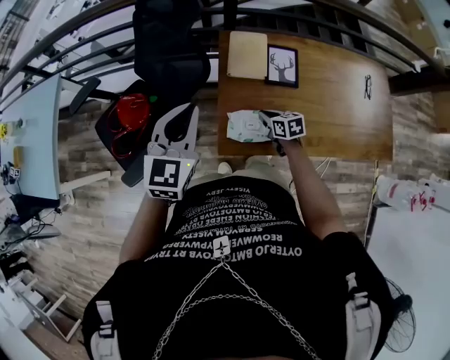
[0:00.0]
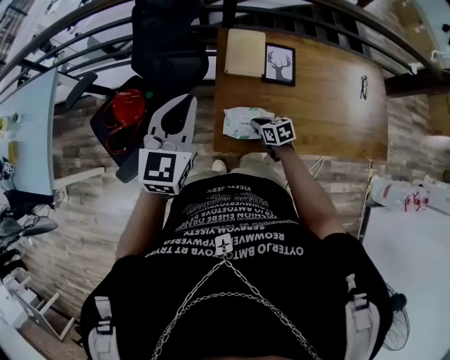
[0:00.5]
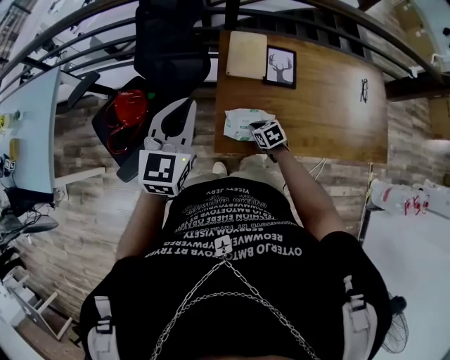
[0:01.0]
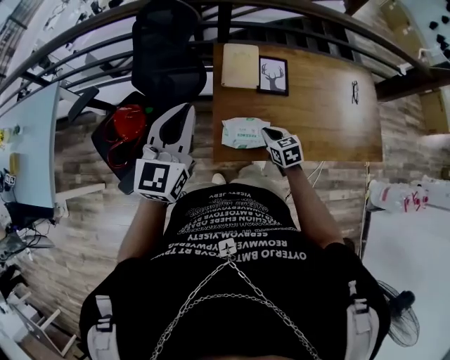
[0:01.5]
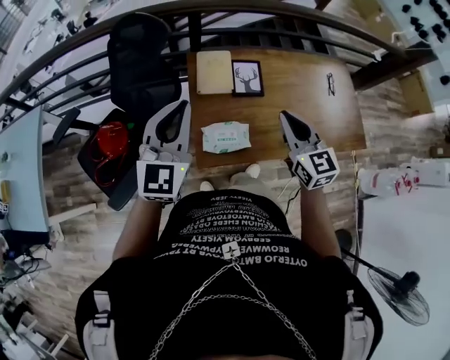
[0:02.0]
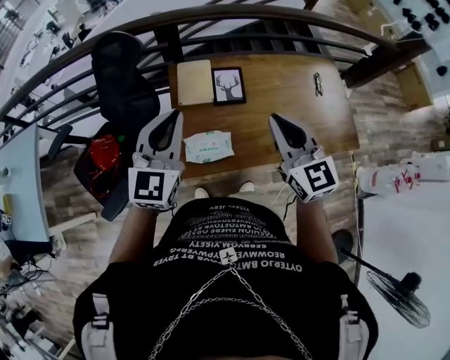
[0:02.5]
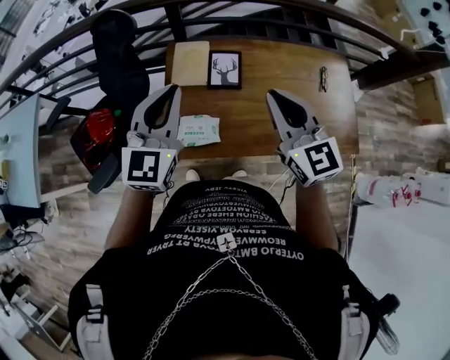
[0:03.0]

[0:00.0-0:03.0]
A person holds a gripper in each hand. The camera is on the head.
0:00.0 to 0:01.5: The left gripper moves upward, approximately 5 cm. Meanwhile the right gripper goes approximately 10 cm upward and backward.
0:01.5 to 0:03.0: The left gripper is displaced to the right by about 20 cm; the right gripper goes roughly 40 cm upward and to the right, and points its fingers some 40 degrees further upward.

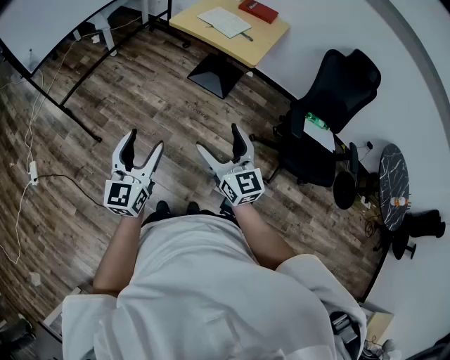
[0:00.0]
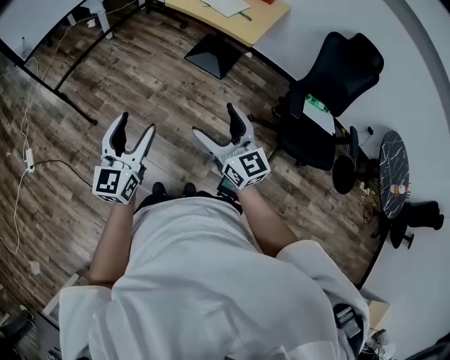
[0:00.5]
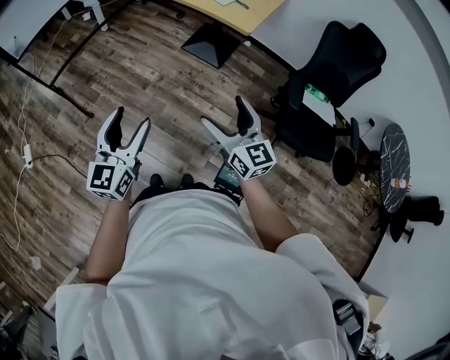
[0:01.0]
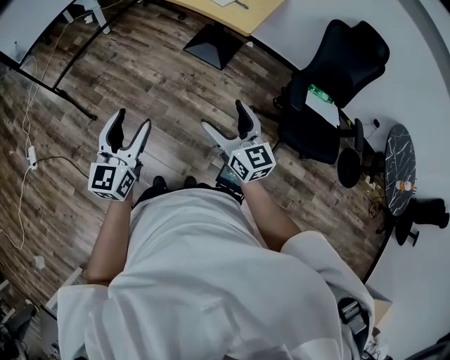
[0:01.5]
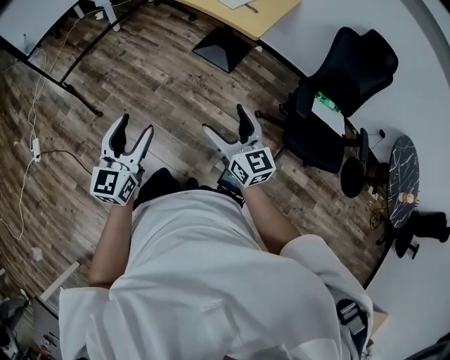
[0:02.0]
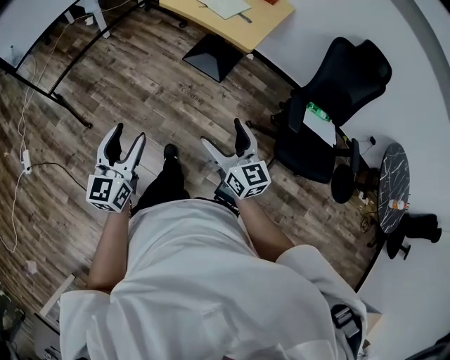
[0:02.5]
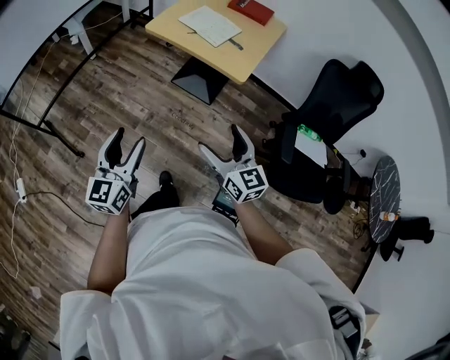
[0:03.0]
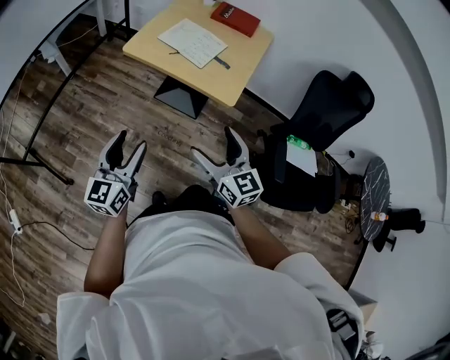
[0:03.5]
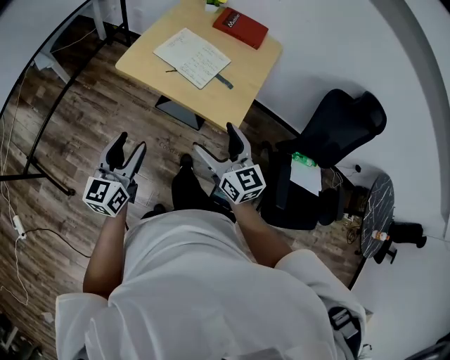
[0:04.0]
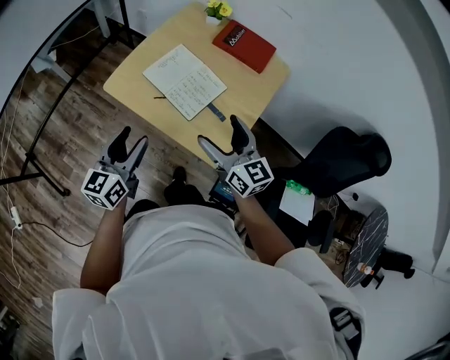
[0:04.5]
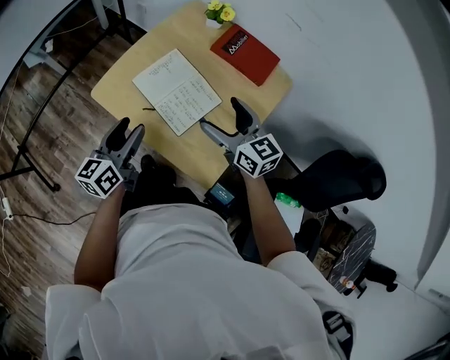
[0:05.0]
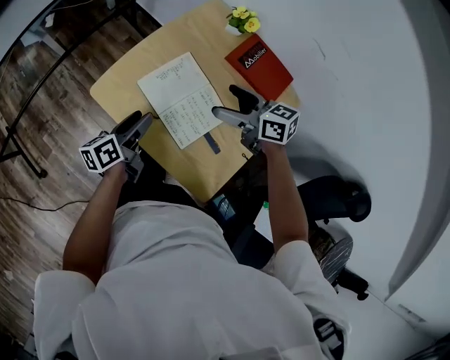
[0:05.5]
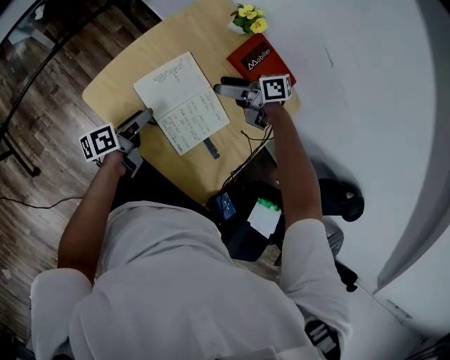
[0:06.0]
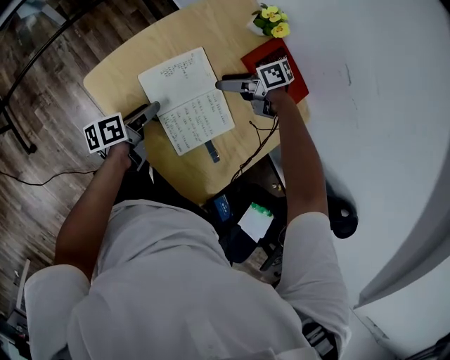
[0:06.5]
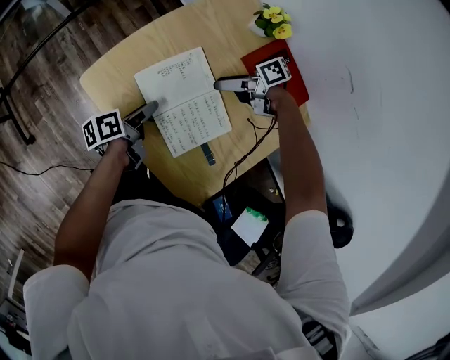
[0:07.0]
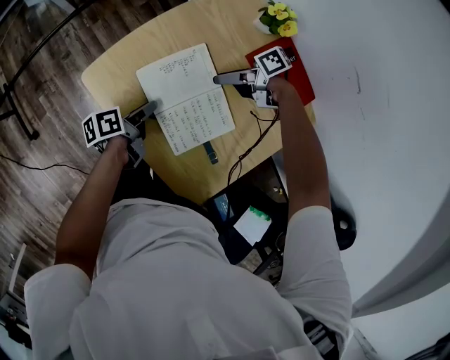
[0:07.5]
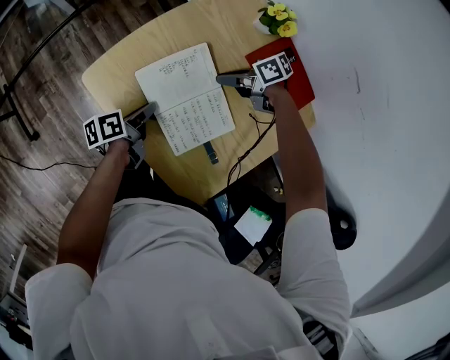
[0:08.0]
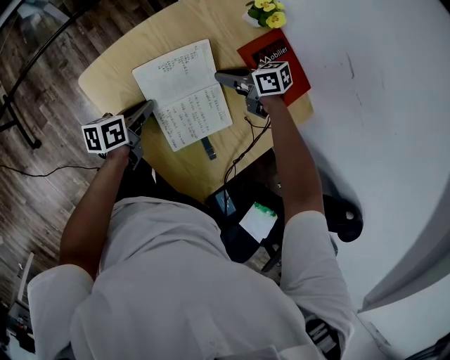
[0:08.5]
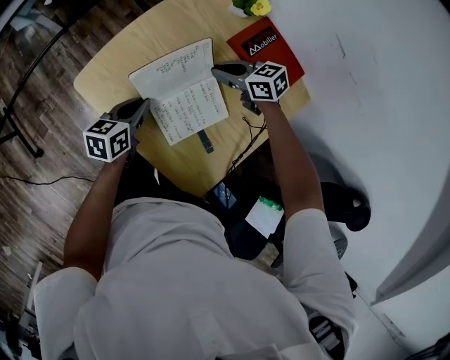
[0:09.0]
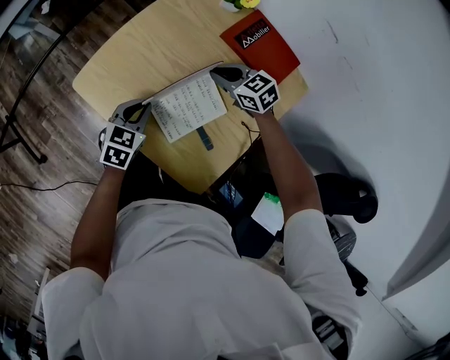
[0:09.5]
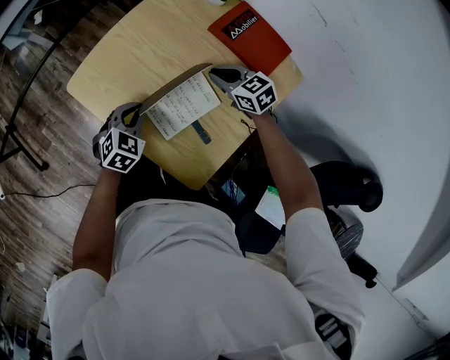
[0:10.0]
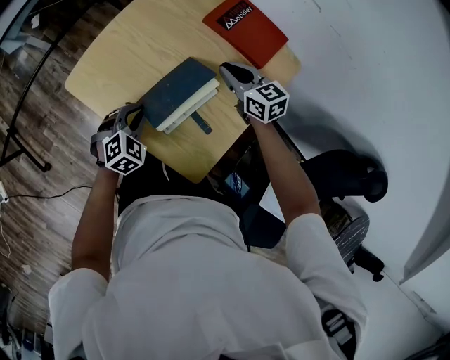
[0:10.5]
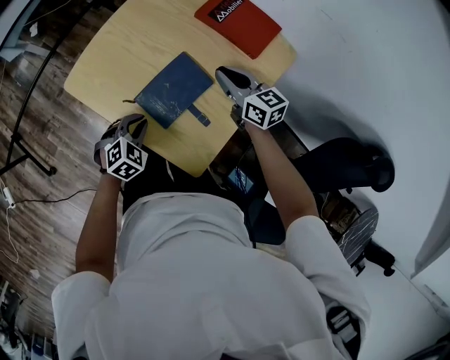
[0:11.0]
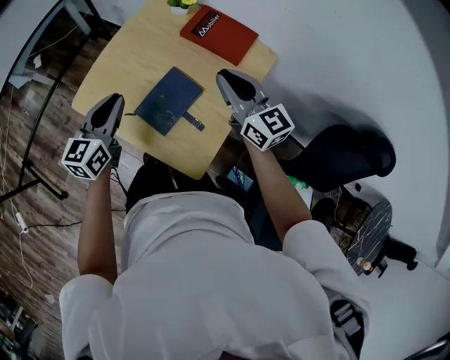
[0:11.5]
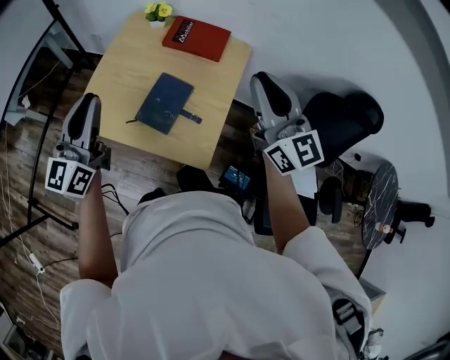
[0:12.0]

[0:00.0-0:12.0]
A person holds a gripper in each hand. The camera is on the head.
0:00.0 to 0:02.0: The right gripper goes roughly 5 cm to the right.
0:02.0 to 0:04.0: The two grippers travel together, forward, approximately 50 cm.
0:04.0 to 0:06.0: The right gripper moves roughly 50 cm, and rotates roughly 70 degrees. Meanwhile the left gripper ends up some 40 cm from where it was, and rolls counterclockwise, seen from behind, by about 60 degrees.
0:06.0 to 0:08.0: The left gripper shifts approximately 5 cm downward, and closes. The right gripper goes roughly 10 cm downward, rotates roughly 30 degrees, and closes.
0:08.0 to 0:10.0: The left gripper ends up approximately 5 cm from where it was, and twists about 90 degrees clockwise, seen from behind, while the right gripper ends up some 10 cm from where it was, and changes its angle by about 50 degrees.
0:10.0 to 0:12.0: The grippers both shift upward by roughly 35 cm. The right gripper points its fingers some 50 degrees further upward. The left gripper tilts its fingers some 60 degrees upward.

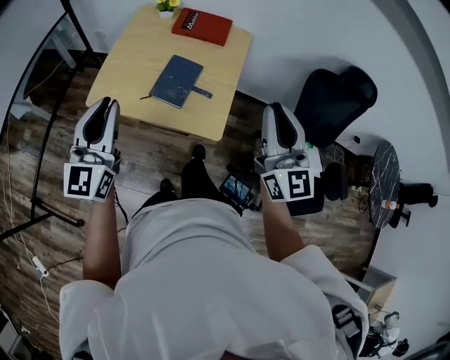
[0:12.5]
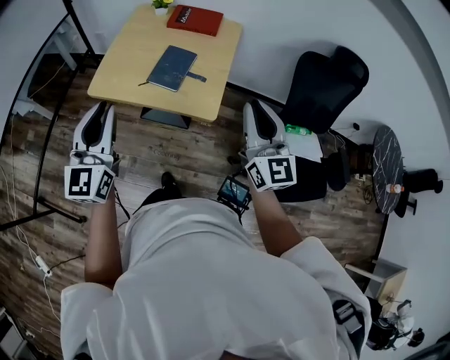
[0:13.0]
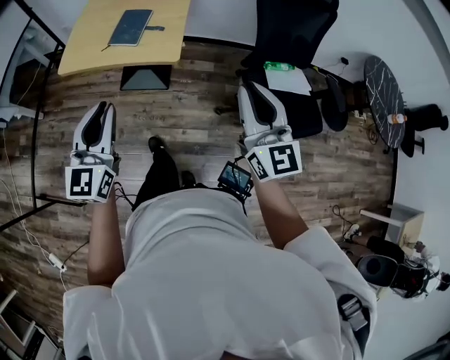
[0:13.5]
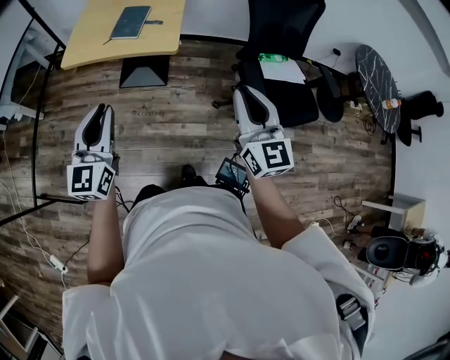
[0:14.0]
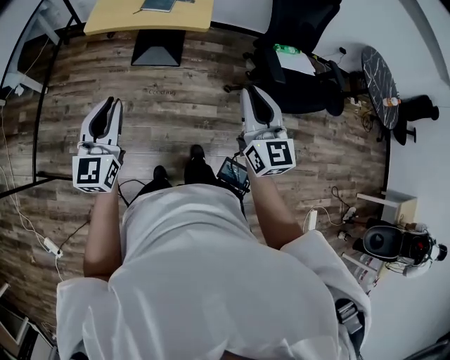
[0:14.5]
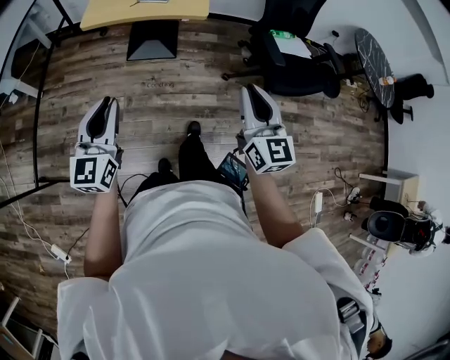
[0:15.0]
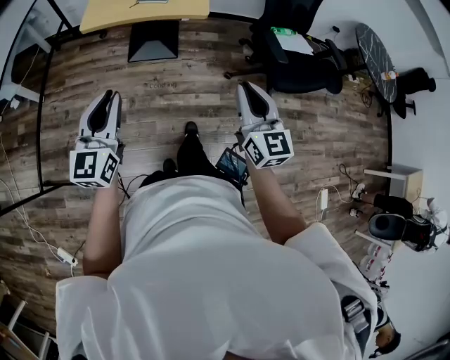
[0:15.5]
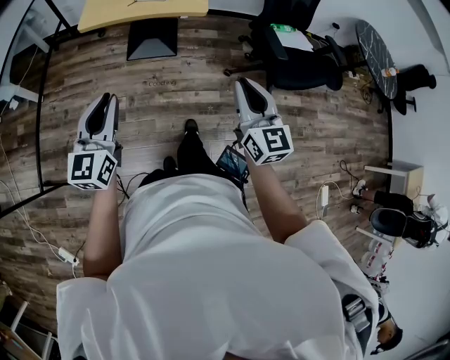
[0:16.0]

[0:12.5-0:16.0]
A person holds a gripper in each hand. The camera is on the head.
0:12.5 to 0:14.5: The two grippers go roughly 40 cm backward.
0:14.5 to 0:16.0: The two grippers go approximately 5 cm to the left.

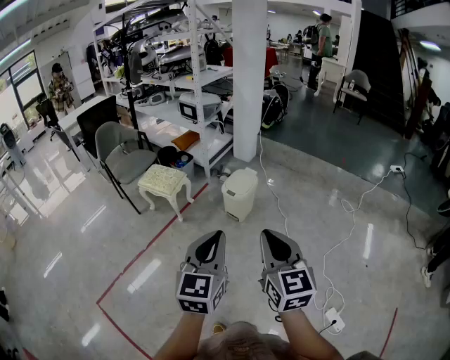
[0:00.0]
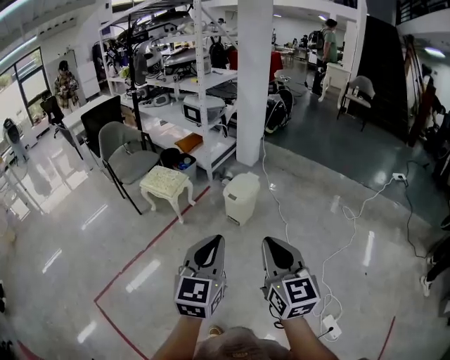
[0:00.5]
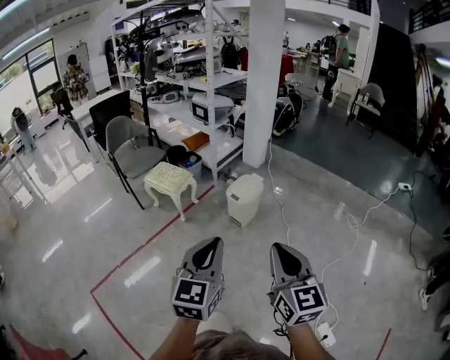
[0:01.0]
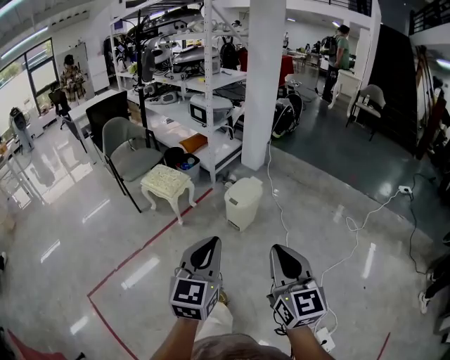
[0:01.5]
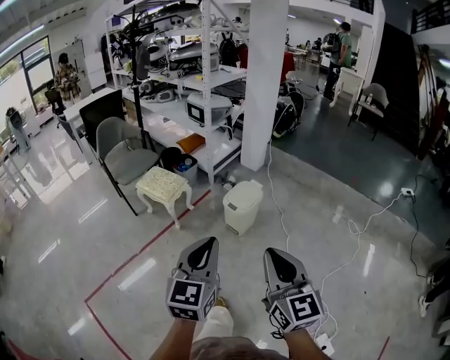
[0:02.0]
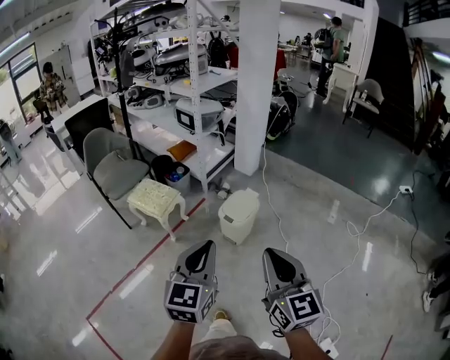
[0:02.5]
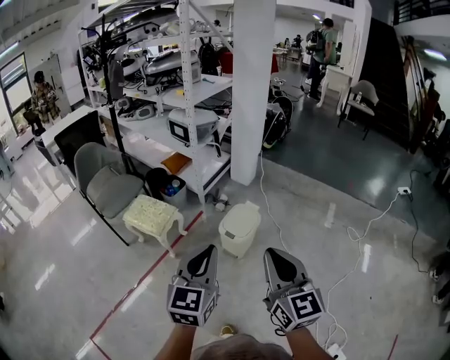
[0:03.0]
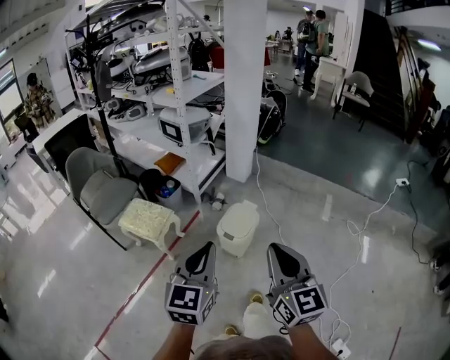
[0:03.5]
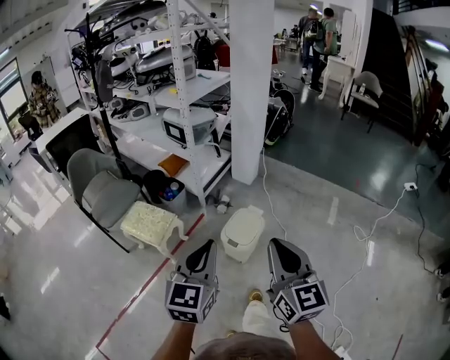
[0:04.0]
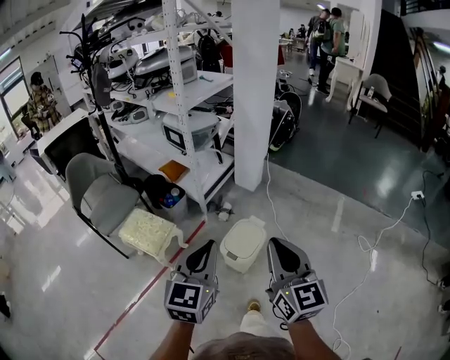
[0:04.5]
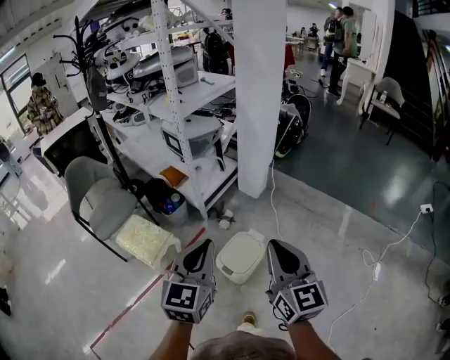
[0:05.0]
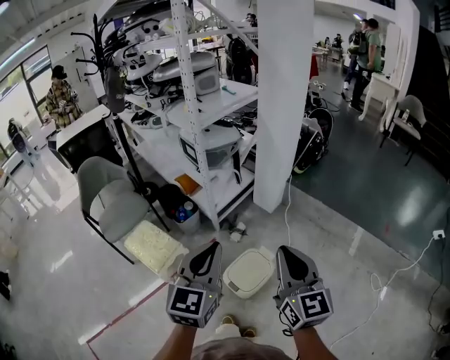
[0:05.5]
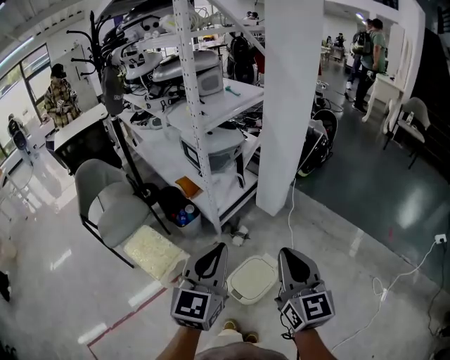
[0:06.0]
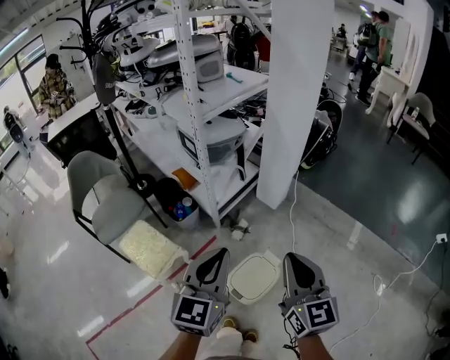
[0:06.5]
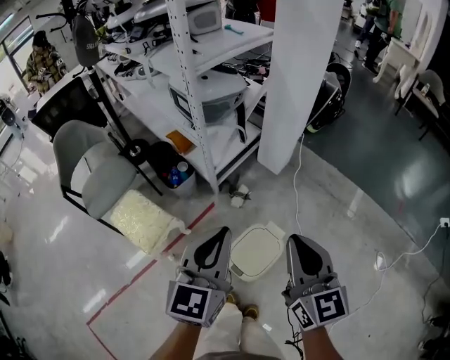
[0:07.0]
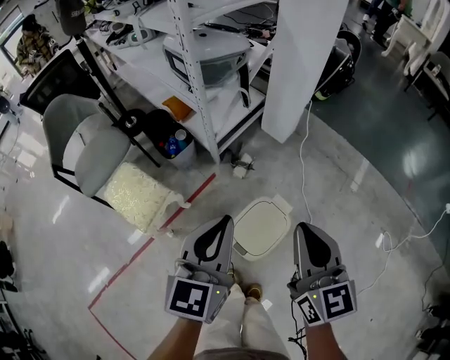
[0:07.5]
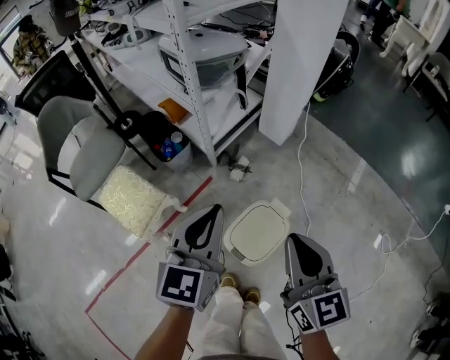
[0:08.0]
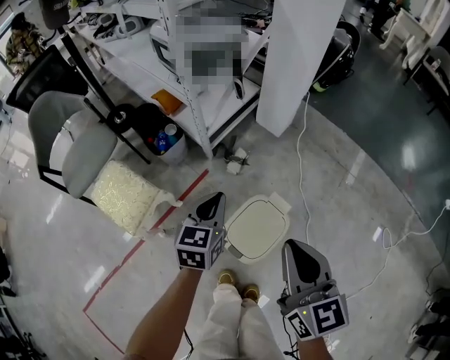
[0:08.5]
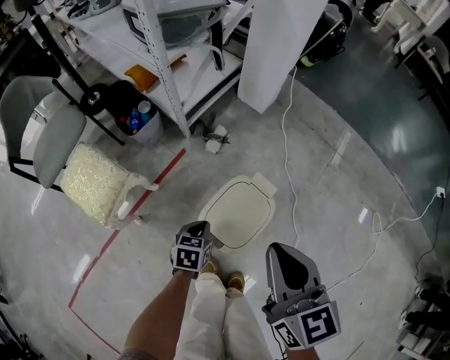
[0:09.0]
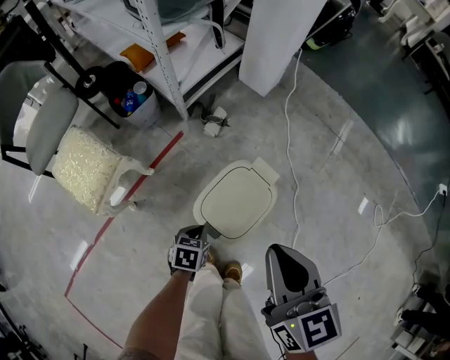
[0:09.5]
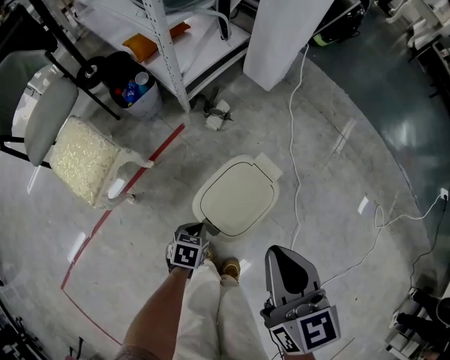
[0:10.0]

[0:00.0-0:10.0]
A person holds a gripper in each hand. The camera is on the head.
0:00.0 to 0:02.0: The grippers both shift forward by roughly 10 cm.
0:02.0 to 0:04.0: The two grippers go some 30 cm forward.
0:04.0 to 0:06.0: Both grippers move forward, approximately 30 cm.
0:06.0 to 0:08.0: The left gripper is displaced downward and forward by about 20 cm, while the right gripper is displaced downward by approximately 20 cm.
0:08.0 to 0:10.0: The right gripper heads downward, covering approximately 15 cm. The left gripper goes approximately 50 cm downward, and tips its fingers downward by roughly 50 degrees.
